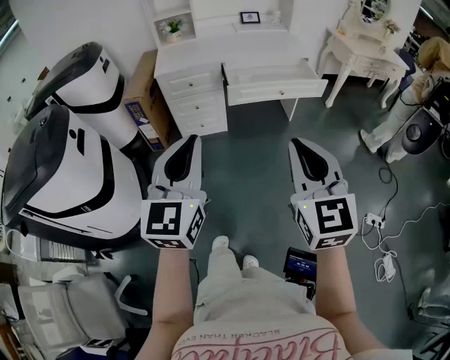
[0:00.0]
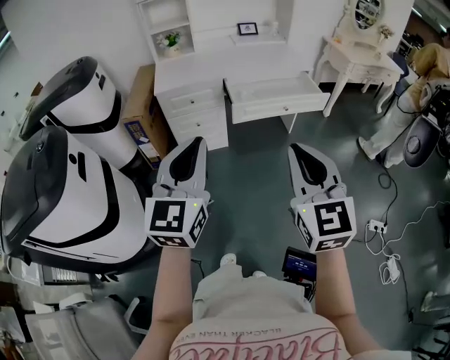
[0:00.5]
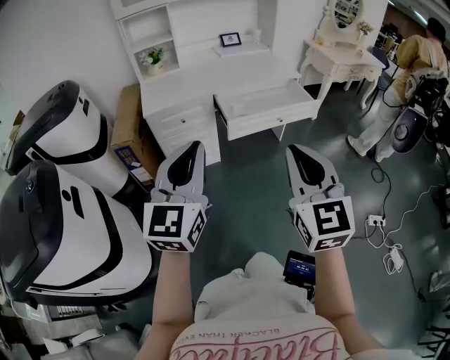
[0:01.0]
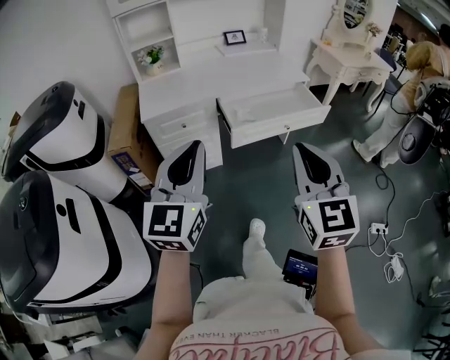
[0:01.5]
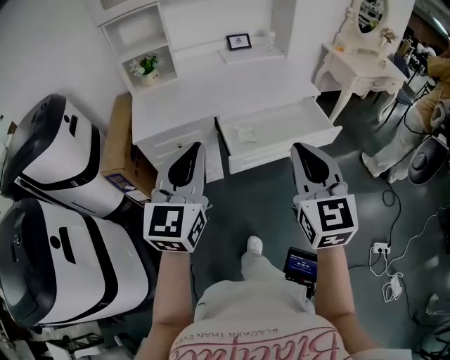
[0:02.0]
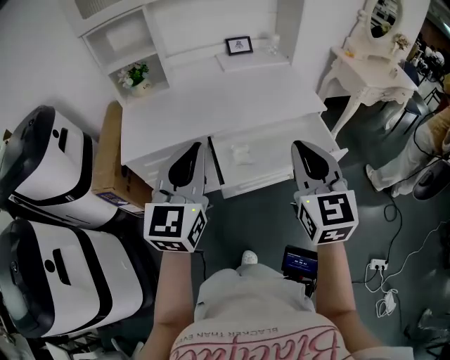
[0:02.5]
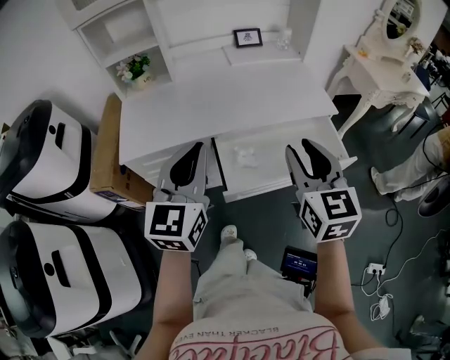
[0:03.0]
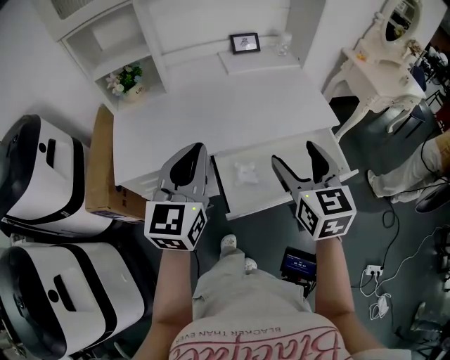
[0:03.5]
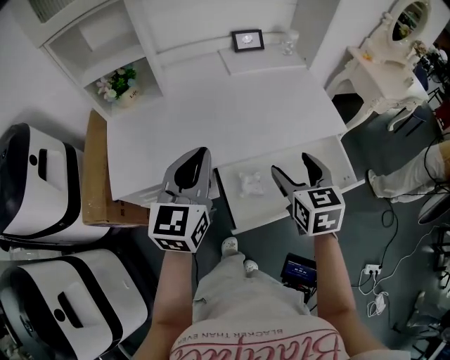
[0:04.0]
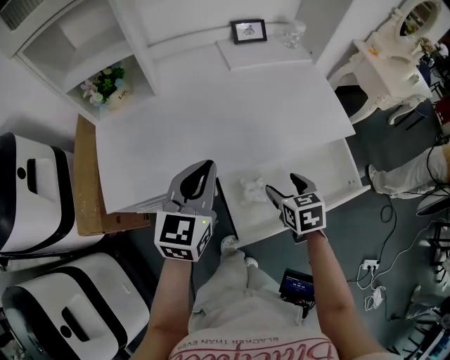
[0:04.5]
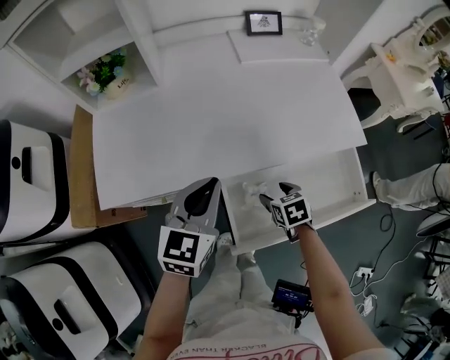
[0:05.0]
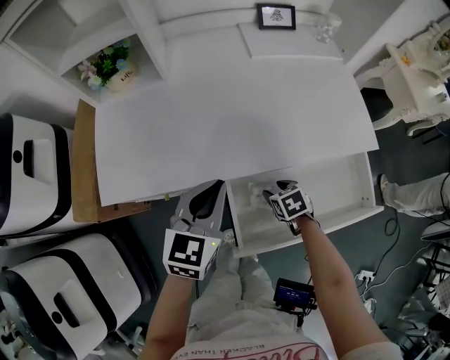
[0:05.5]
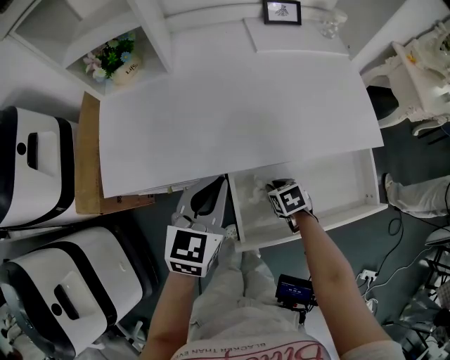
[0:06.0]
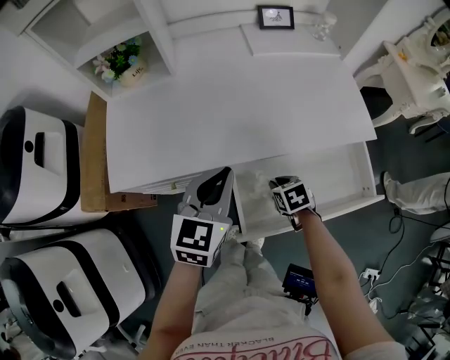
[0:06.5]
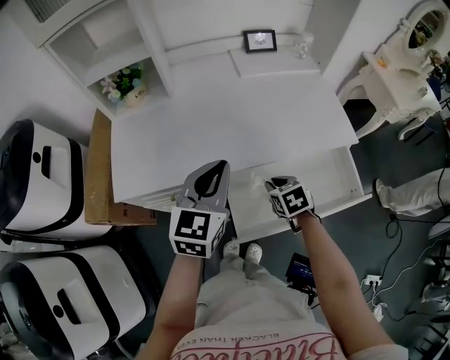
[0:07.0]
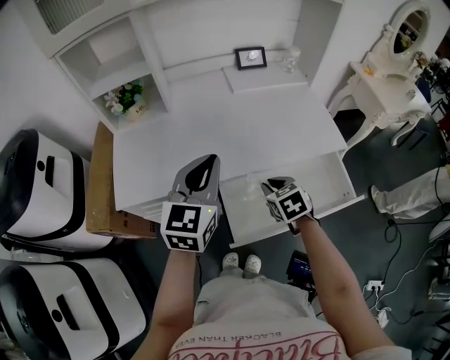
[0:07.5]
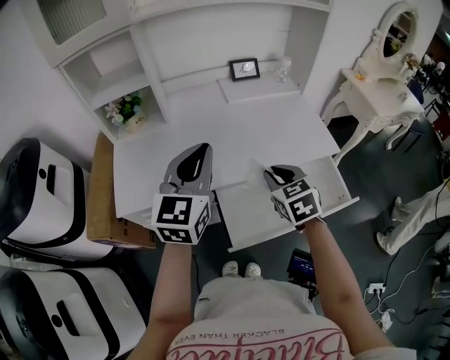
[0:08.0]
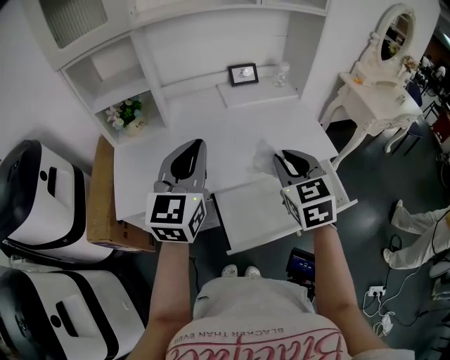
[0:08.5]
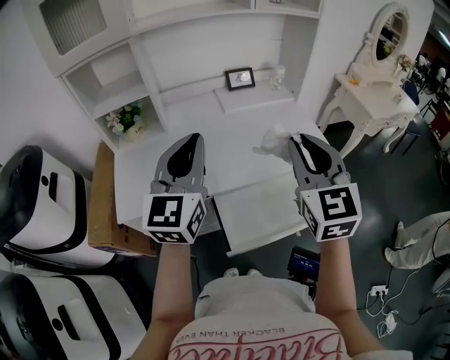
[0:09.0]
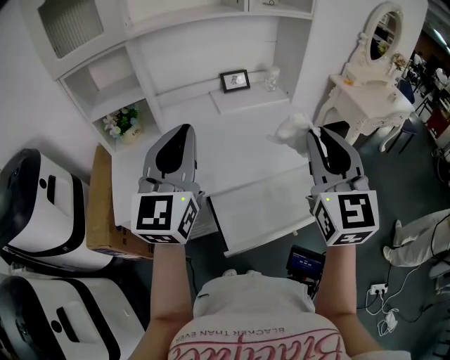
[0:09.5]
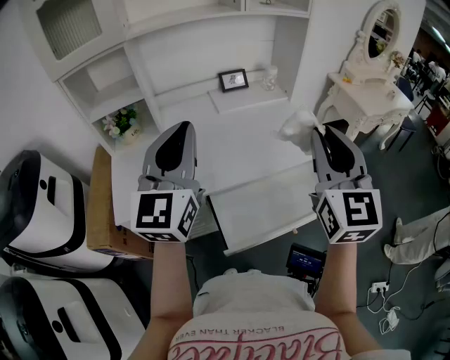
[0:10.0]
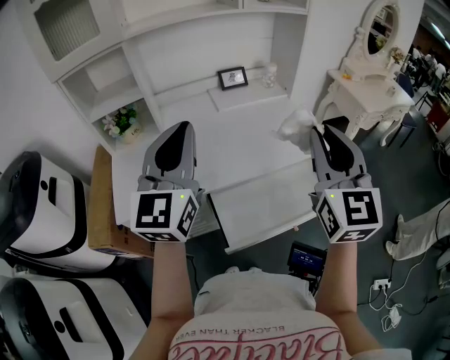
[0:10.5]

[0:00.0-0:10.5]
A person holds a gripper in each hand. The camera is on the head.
0:00.0 to 0:02.0: The two grippers go roughly 35 cm forward.
0:02.0 to 0:04.0: The left gripper is displaced forward by roughly 35 cm. Meanwhile the right gripper moves forward and downward, approximately 40 cm, rotates about 30 degrees, and opens up.
0:04.0 to 0:06.5: The right gripper goes some 25 cm downward, angles its fingers downward, by some 30 degrees, and closes up. Meanwhile the left gripper goes some 10 cm downward.
0:06.5 to 0:08.5: The left gripper heads upward, covering about 20 cm, and swivels approximately 20 degrees. The right gripper goes about 35 cm upward, and tips its fingers upward by approximately 40 degrees.
0:08.5 to 0:10.5: The right gripper travels upward and to the right by some 15 cm, and rotates about 30 degrees. The left gripper shifts some 10 cm upward.

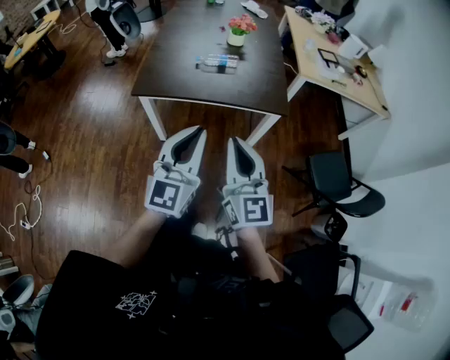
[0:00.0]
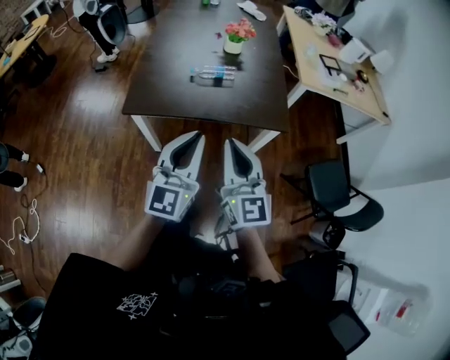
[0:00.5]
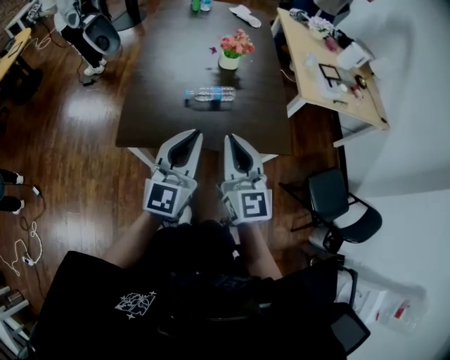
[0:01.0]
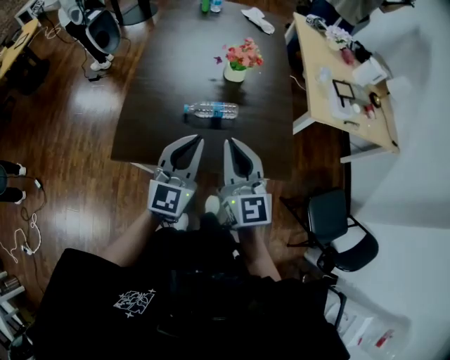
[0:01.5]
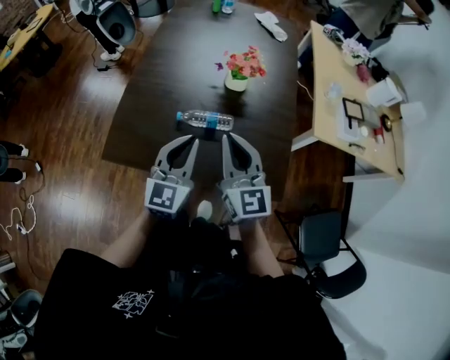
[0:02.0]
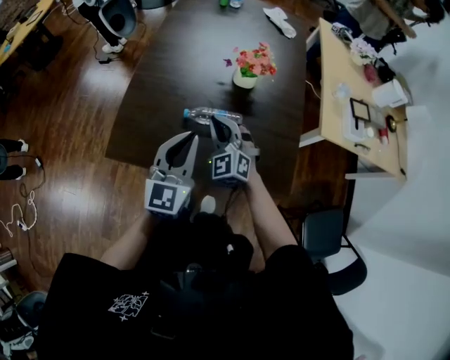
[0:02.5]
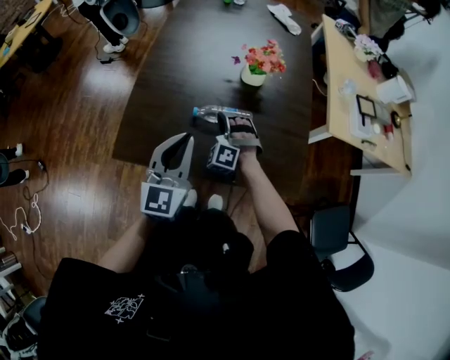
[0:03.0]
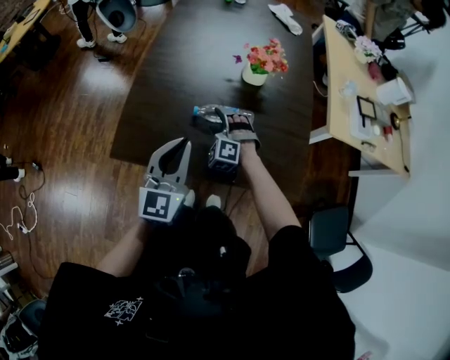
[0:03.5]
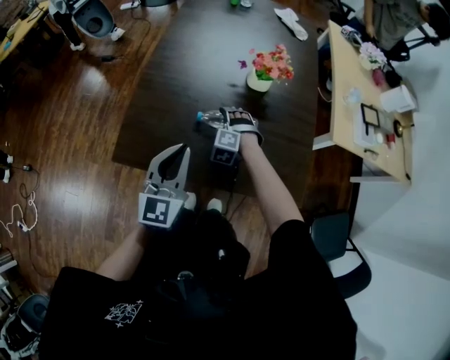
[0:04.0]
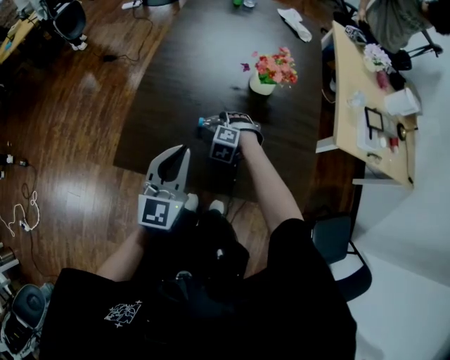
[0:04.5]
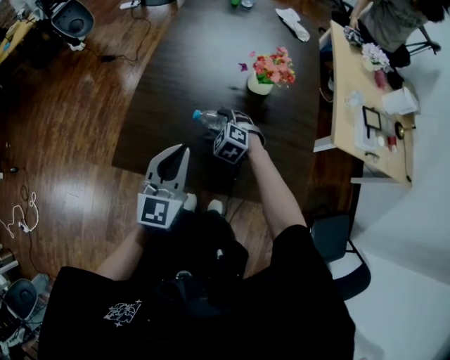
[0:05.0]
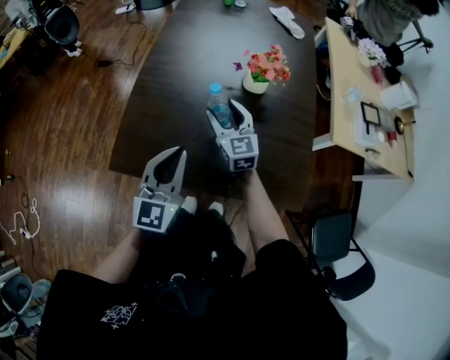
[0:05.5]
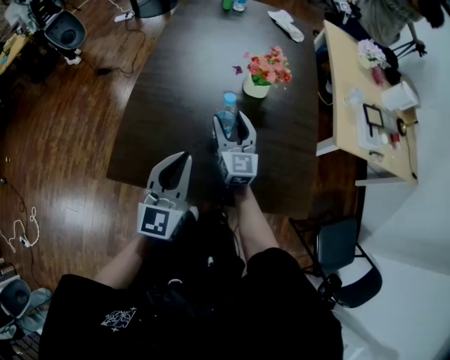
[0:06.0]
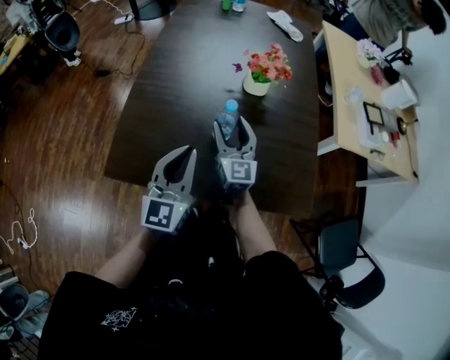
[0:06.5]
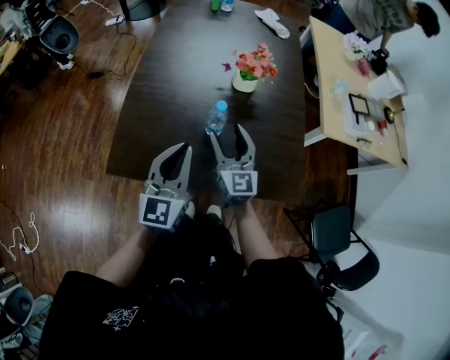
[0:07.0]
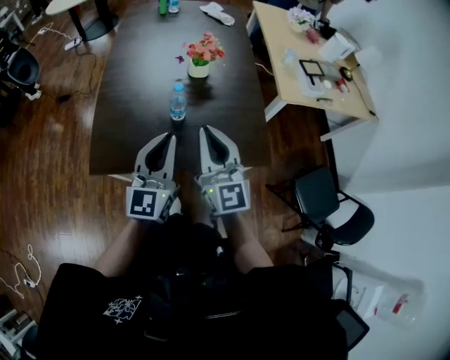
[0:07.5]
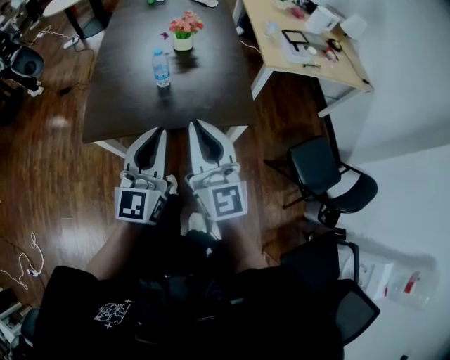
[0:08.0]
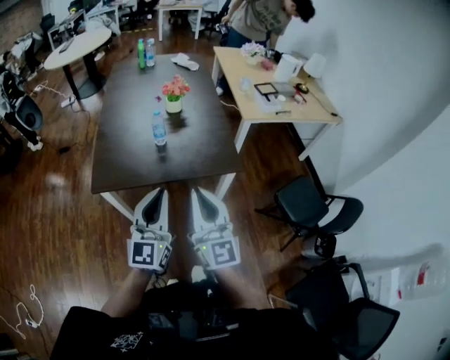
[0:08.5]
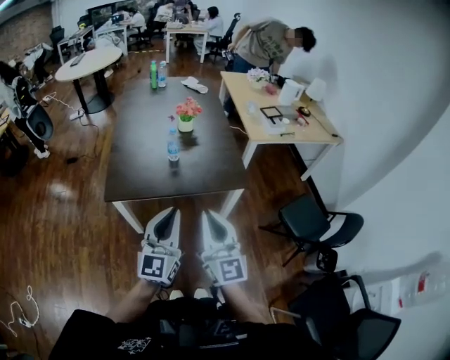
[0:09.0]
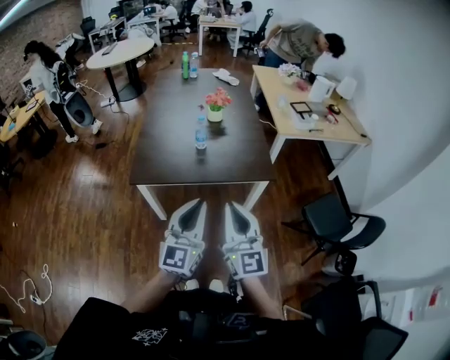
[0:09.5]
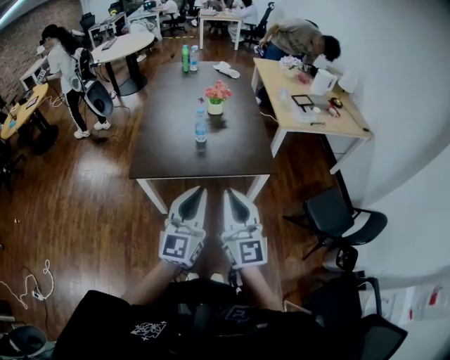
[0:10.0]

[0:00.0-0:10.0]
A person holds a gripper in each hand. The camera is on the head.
0:00.0 to 0:02.0: The pair of grippers is taken forward, about 40 cm.
0:02.0 to 0:04.0: The left gripper moves to the left, roughly 10 cm, while the right gripper heads downward, covering about 30 cm, points its fingers roughly 60 degrees further downward, and opens.
0:04.0 to 0:06.0: The right gripper goes some 10 cm upward, angles its fingers upward, by about 60 degrees, and closes.
0:06.0 to 0:08.0: The right gripper goes about 50 cm backward and upward, and closes; the left gripper goes approximately 30 cm backward, upward and to the right.
0:08.0 to 0:10.0: The grippers both shift backward by about 15 cm.

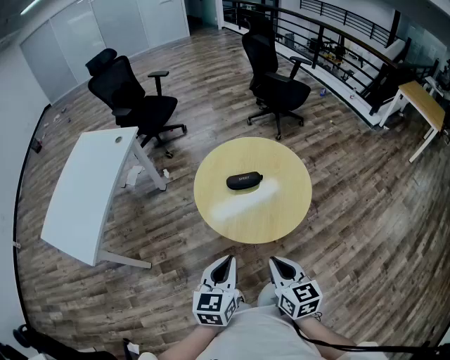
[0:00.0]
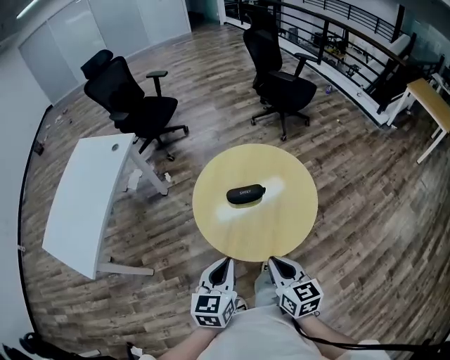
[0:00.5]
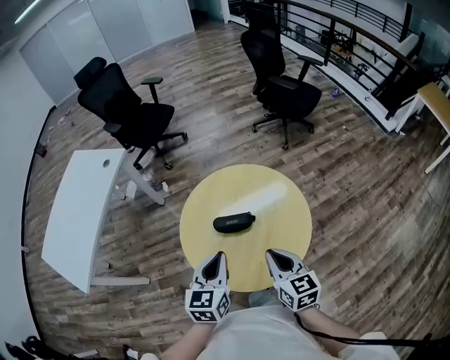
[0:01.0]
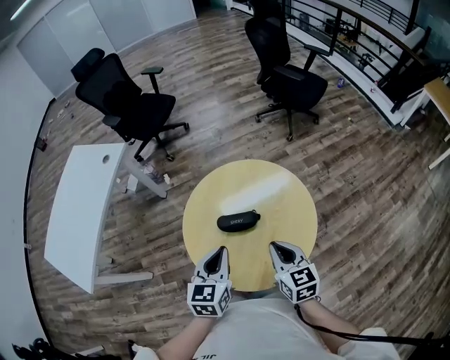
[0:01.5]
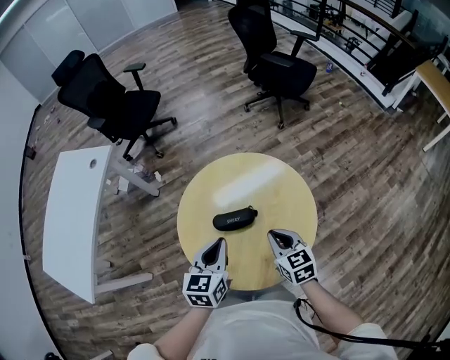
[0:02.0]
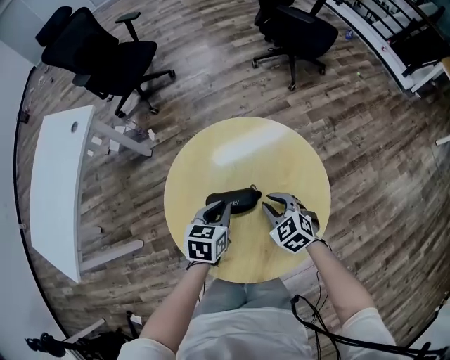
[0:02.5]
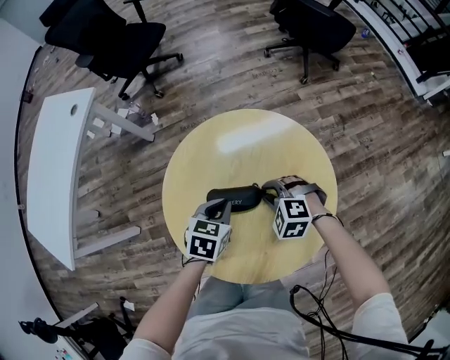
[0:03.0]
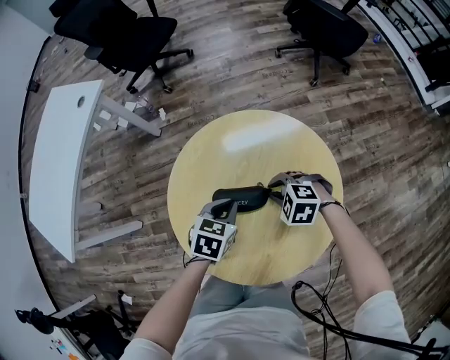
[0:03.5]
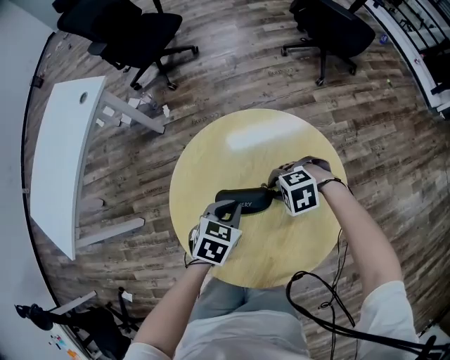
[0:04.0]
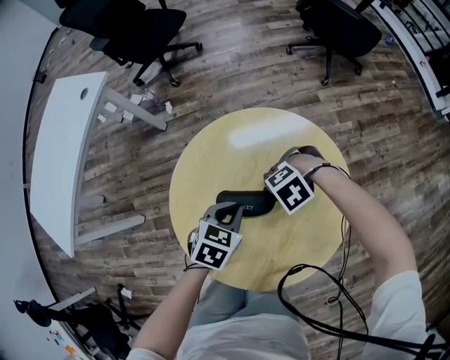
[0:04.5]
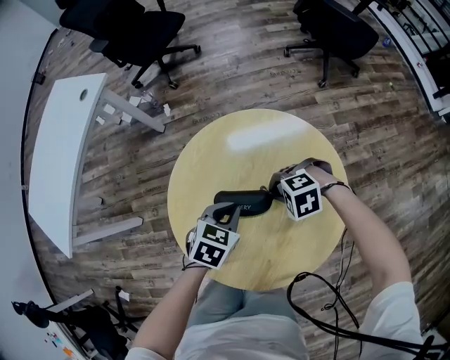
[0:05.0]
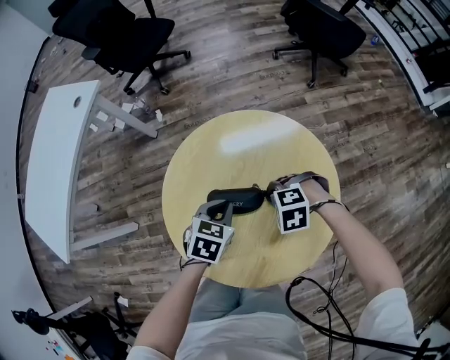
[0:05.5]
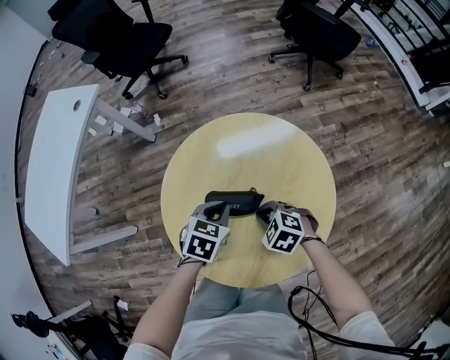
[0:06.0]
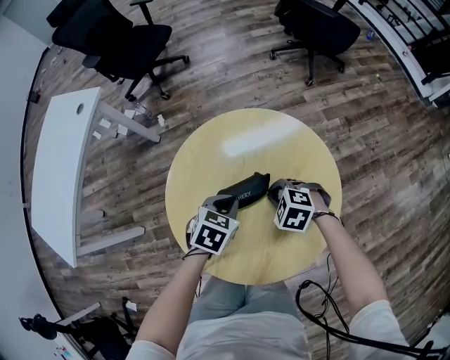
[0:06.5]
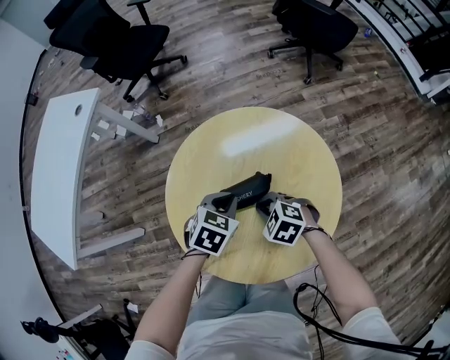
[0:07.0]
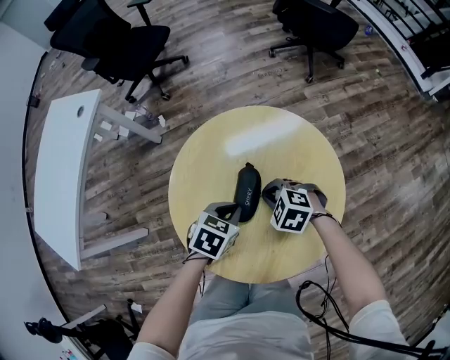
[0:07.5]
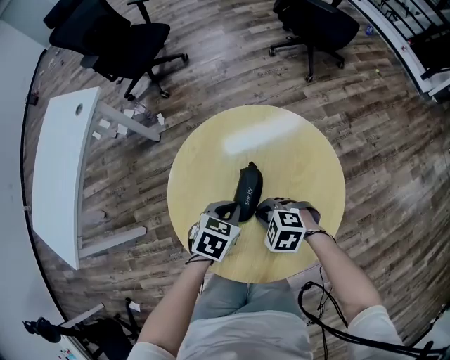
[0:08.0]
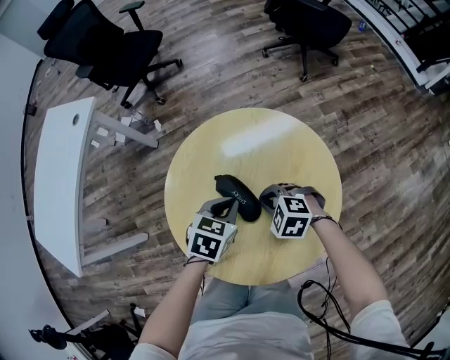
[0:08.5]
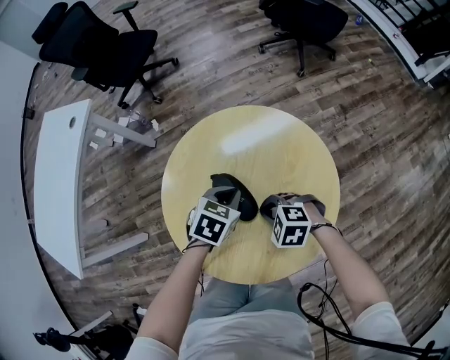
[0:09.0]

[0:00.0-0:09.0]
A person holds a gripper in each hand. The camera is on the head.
0:00.0 to 0:02.0: Both grippers travel together forward, about 30 cm.
0:02.0 to 0:04.5: Both grippers travel together downward, about 20 cm. The right gripper points its fingers some 30 degrees further downward. The left gripper turns by about 30 degrees.
0:04.5 to 0:07.0: The right gripper rolls clockwise, seen from behind, by some 50 degrees.
0:07.0 to 0:09.0: The grippers make only small movements.
